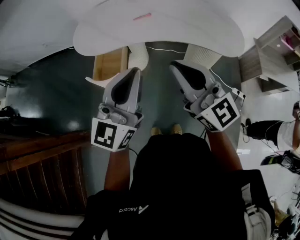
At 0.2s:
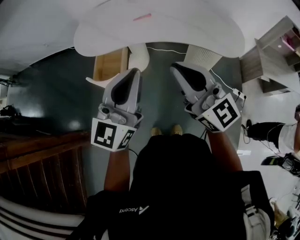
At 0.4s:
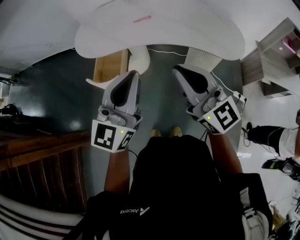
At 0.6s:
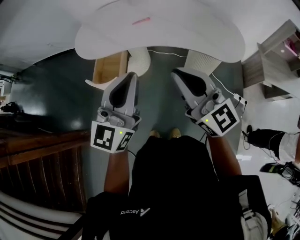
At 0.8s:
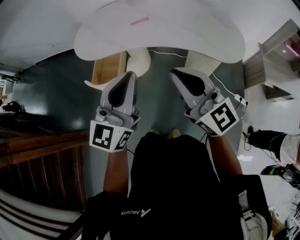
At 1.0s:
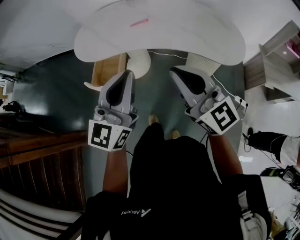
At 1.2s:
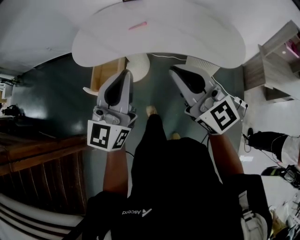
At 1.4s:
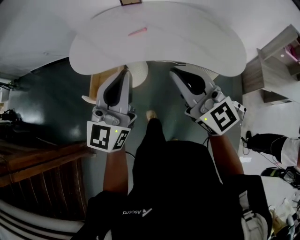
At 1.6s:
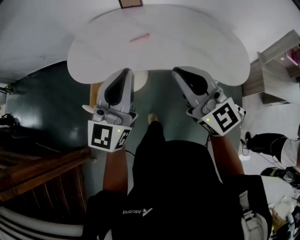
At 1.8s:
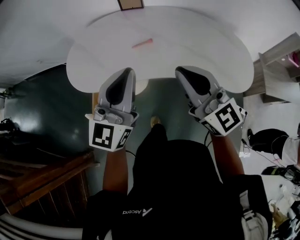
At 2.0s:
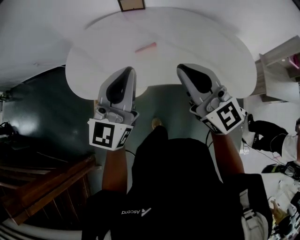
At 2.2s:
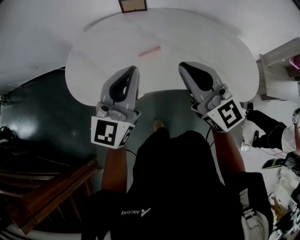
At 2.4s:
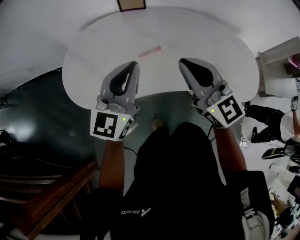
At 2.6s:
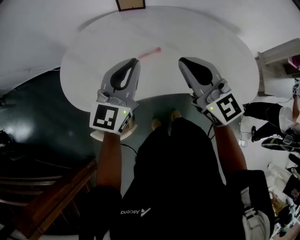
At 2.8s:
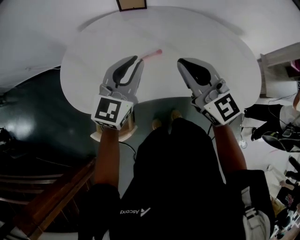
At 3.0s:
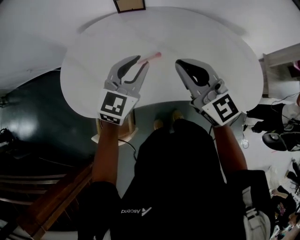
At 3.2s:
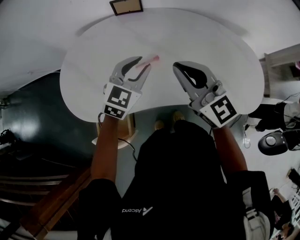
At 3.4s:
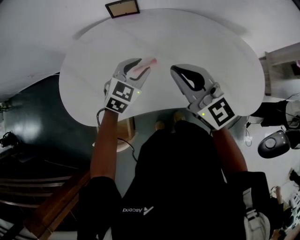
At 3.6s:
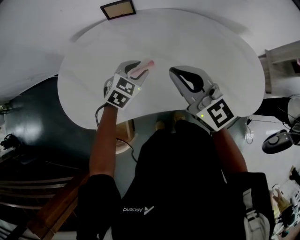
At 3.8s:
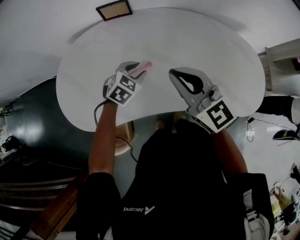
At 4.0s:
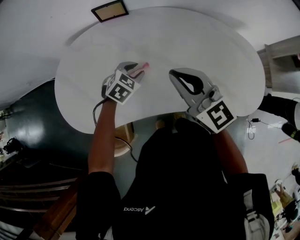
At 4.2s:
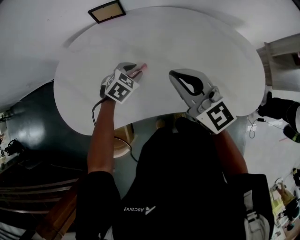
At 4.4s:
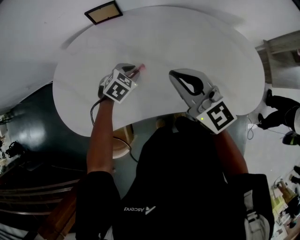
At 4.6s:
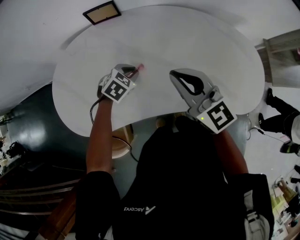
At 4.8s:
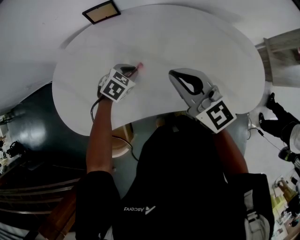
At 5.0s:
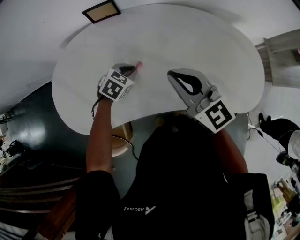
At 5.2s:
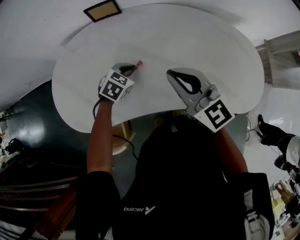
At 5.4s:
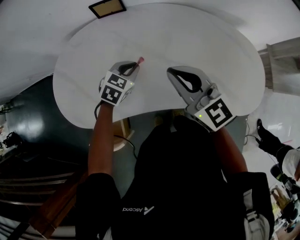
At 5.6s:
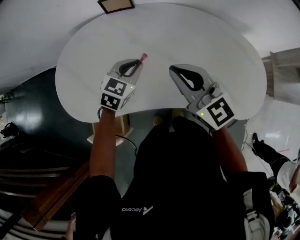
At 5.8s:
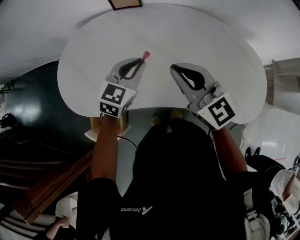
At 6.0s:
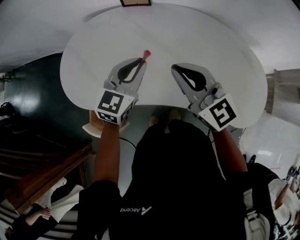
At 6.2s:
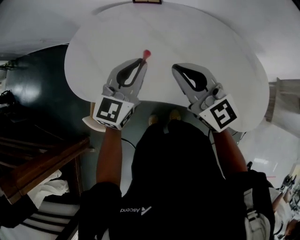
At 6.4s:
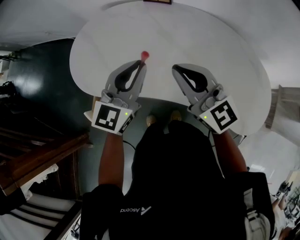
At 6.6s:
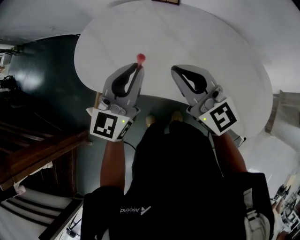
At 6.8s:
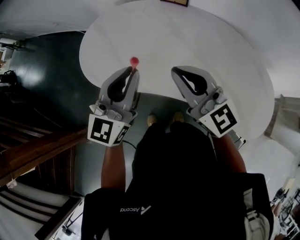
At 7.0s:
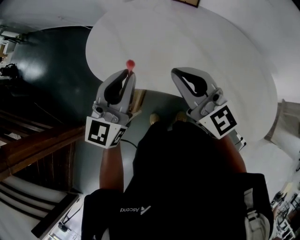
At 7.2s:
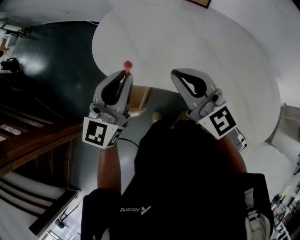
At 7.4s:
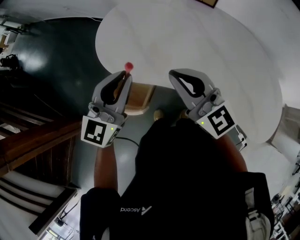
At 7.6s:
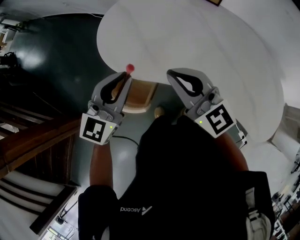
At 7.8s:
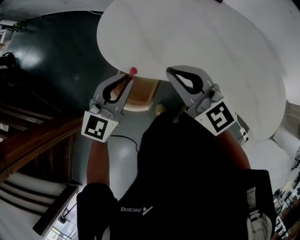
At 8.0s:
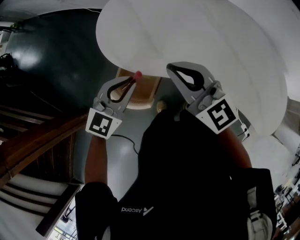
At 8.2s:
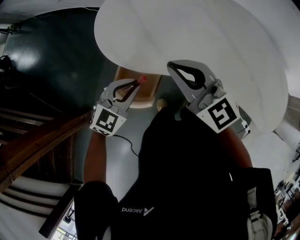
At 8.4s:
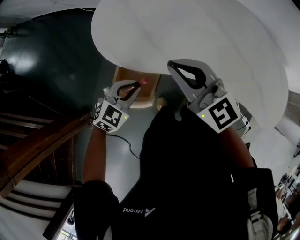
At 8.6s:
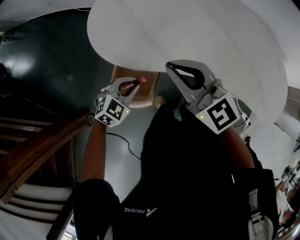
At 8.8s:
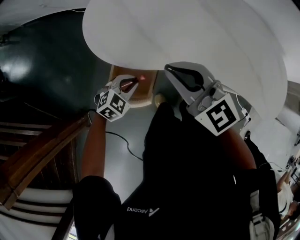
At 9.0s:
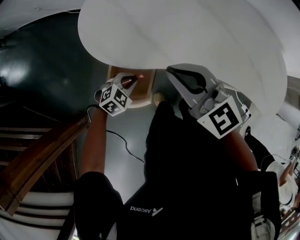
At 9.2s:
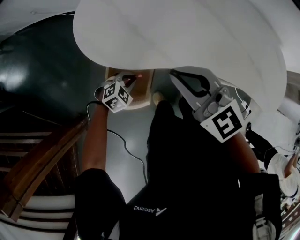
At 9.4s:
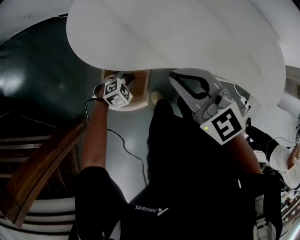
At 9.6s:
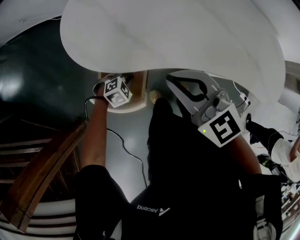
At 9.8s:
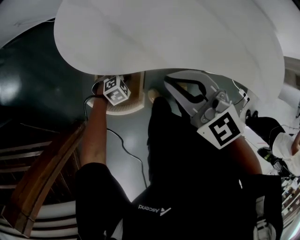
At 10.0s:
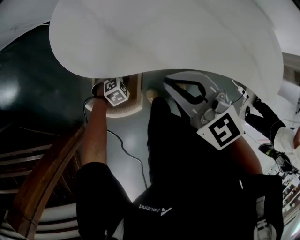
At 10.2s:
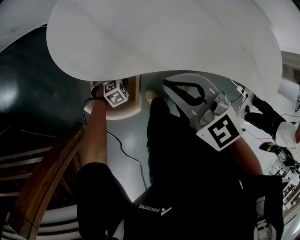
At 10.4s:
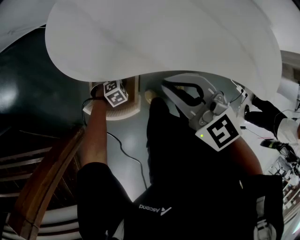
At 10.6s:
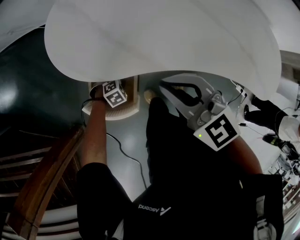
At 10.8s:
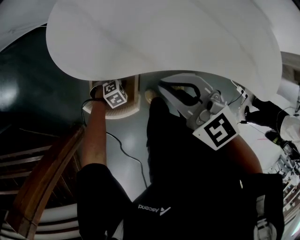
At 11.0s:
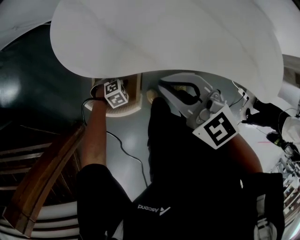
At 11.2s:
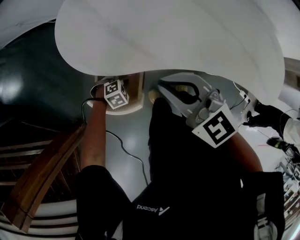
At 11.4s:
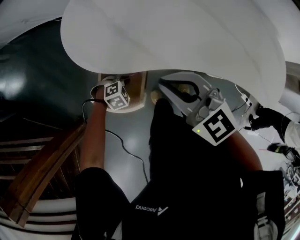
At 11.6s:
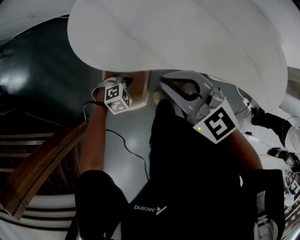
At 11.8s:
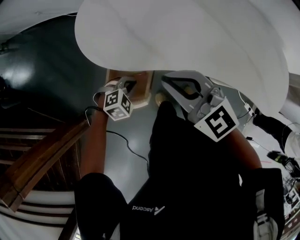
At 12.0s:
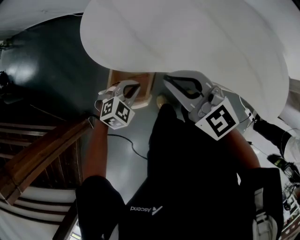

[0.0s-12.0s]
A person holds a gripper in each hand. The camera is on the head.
0.0s to 1.6s: Both grippers travel together forward, approximately 15 cm.
1.6s to 3.0s: The right gripper is displaced forward by roughly 25 cm, while the left gripper moves forward and downward, about 30 cm, and turns by approximately 30 degrees.
3.0s to 4.4s: The left gripper goes about 20 cm downward and forward, and tilts its fingers approximately 50 degrees downward, while the right gripper goes roughly 10 cm to the right and forward.
4.4s to 6.0s: The left gripper goes some 15 cm upward, and tilts its fingers roughly 40 degrees upward.
6.0s to 7.6s: The grippers both shift to the left by approximately 30 cm.
7.6s to 9.0s: The right gripper goes roughly 5 cm downward, while the left gripper moves downward, approximately 30 cm, and tilts its fingers about 50 degrees downward.
9.0s to 10.4s: The left gripper moves downward, about 15 cm, and rotates roughly 20 degrees; the right gripper changes place by some 5 cm.
10.4s to 12.0s: The left gripper is displaced upward by some 25 cm, and turns by roughly 20 degrees.

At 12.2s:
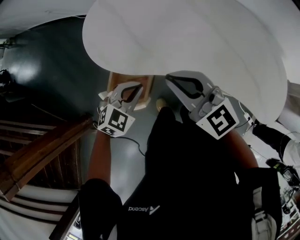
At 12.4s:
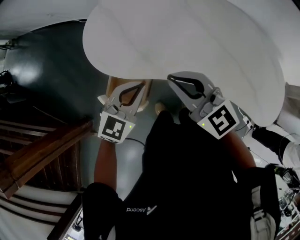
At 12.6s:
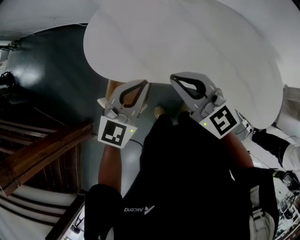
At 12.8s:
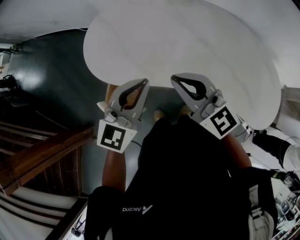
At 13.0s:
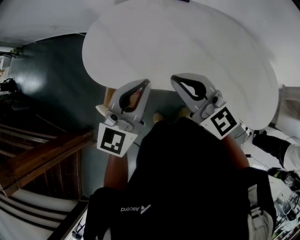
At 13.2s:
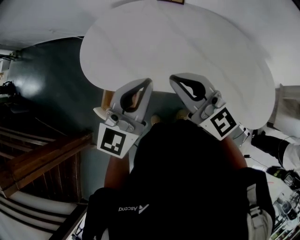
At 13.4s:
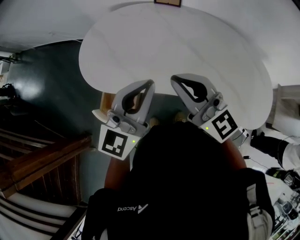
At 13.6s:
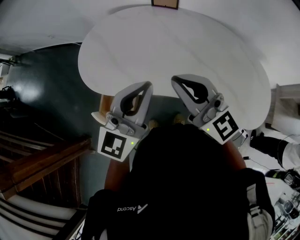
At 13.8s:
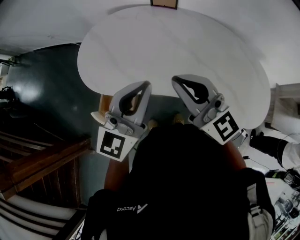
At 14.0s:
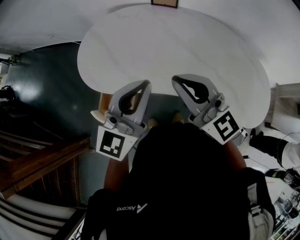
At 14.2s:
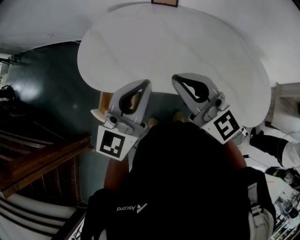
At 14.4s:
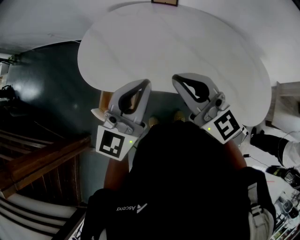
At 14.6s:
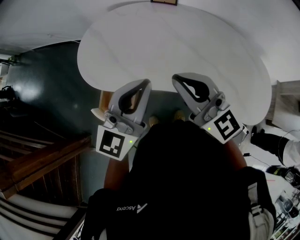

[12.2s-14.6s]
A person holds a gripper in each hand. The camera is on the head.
12.2s to 13.4s: The right gripper shifts about 15 cm to the right and upward, while the left gripper heads upward and to the right, covering roughly 30 cm, and points its fingers approximately 40 degrees further upward.
13.4s to 14.6s: The grippers make only small movements.

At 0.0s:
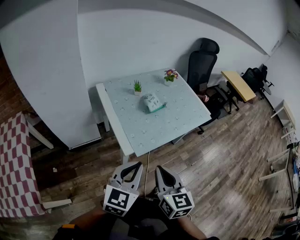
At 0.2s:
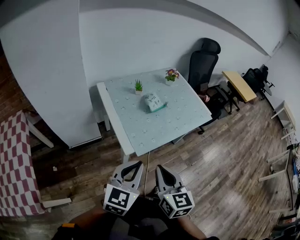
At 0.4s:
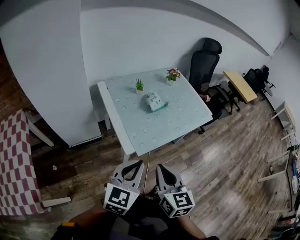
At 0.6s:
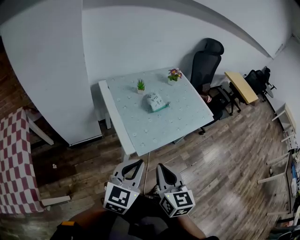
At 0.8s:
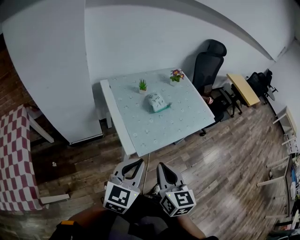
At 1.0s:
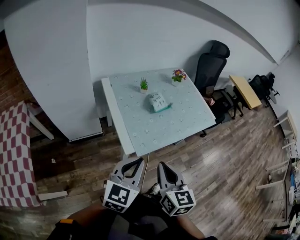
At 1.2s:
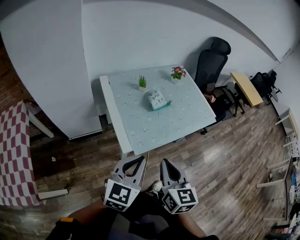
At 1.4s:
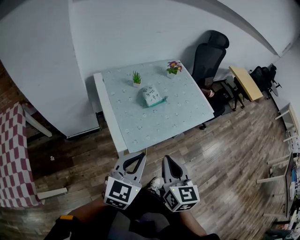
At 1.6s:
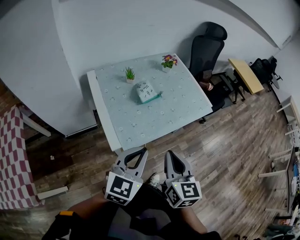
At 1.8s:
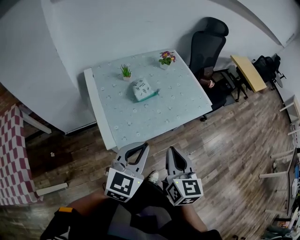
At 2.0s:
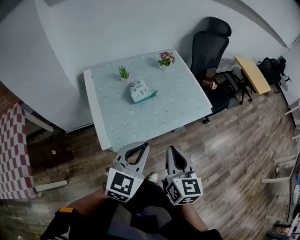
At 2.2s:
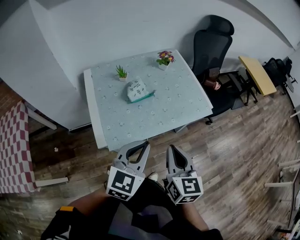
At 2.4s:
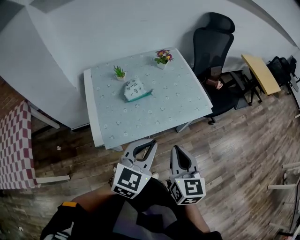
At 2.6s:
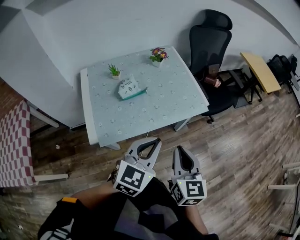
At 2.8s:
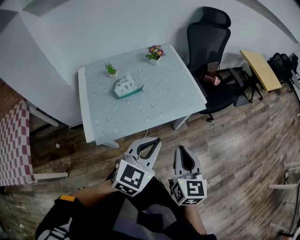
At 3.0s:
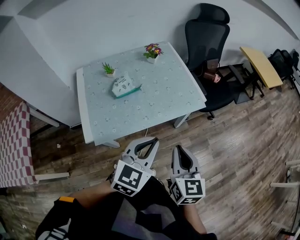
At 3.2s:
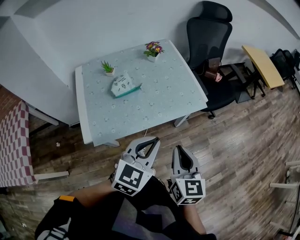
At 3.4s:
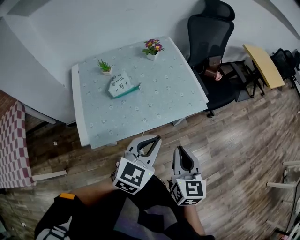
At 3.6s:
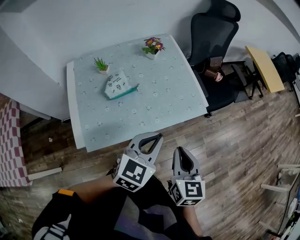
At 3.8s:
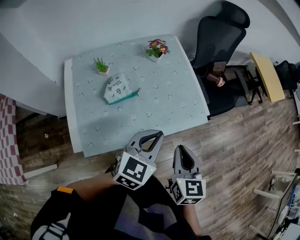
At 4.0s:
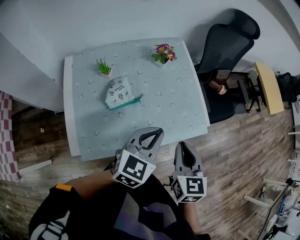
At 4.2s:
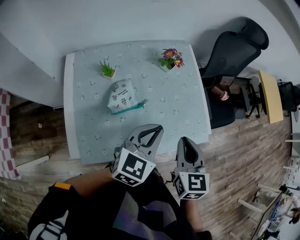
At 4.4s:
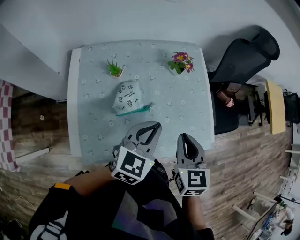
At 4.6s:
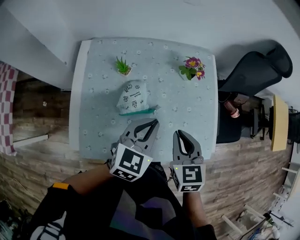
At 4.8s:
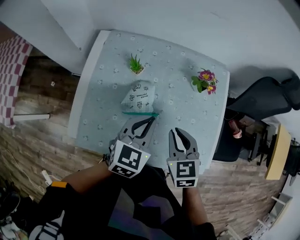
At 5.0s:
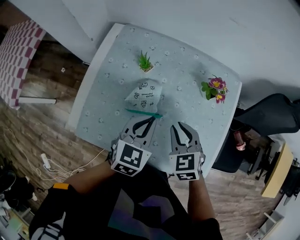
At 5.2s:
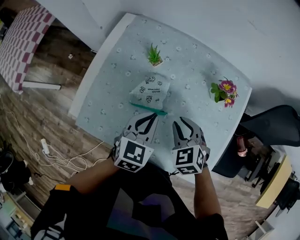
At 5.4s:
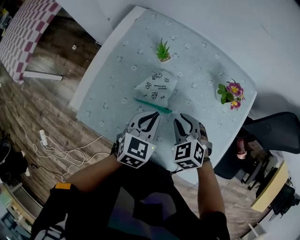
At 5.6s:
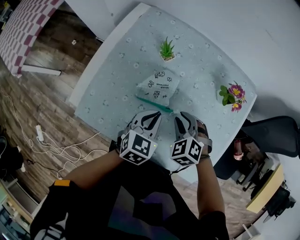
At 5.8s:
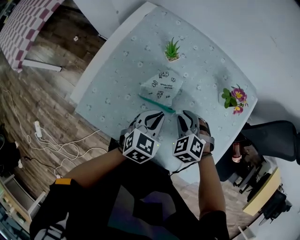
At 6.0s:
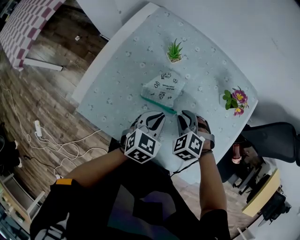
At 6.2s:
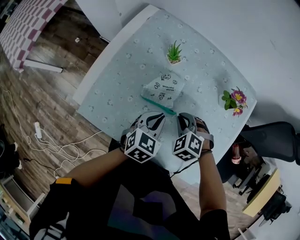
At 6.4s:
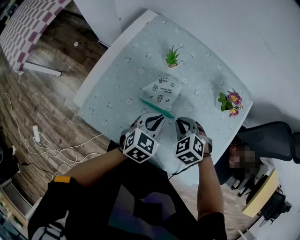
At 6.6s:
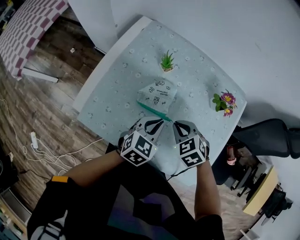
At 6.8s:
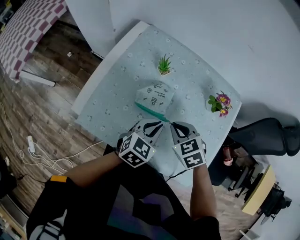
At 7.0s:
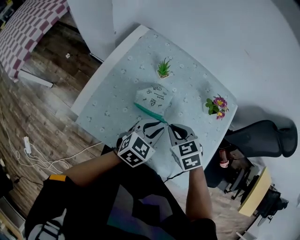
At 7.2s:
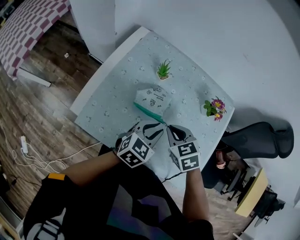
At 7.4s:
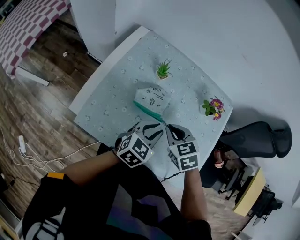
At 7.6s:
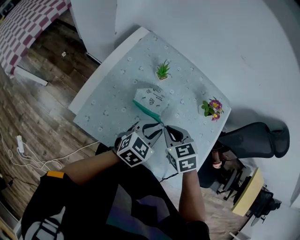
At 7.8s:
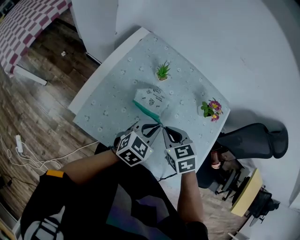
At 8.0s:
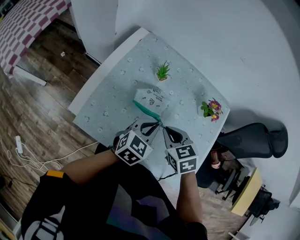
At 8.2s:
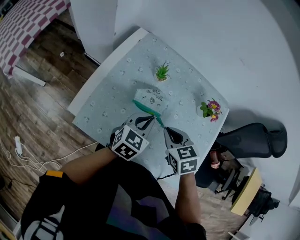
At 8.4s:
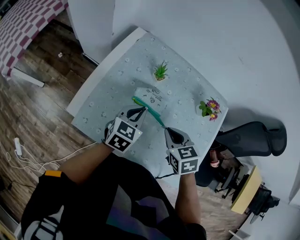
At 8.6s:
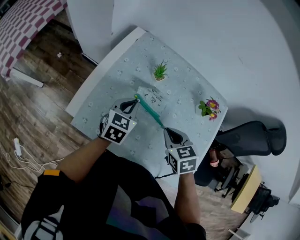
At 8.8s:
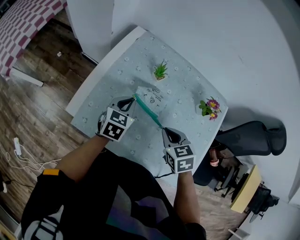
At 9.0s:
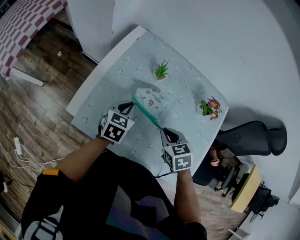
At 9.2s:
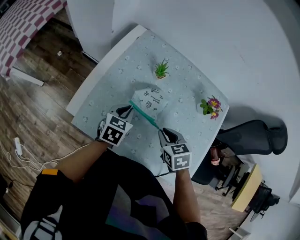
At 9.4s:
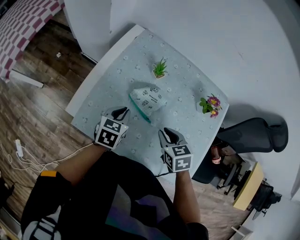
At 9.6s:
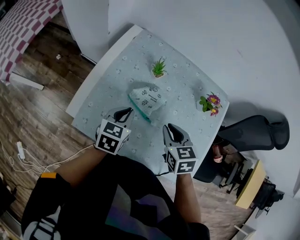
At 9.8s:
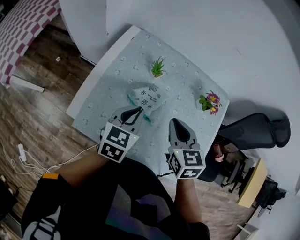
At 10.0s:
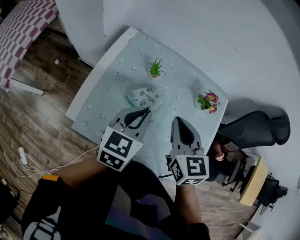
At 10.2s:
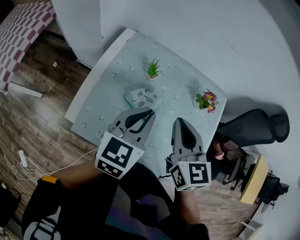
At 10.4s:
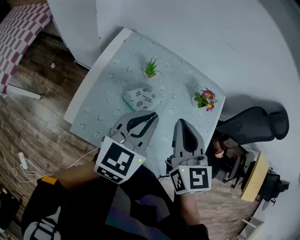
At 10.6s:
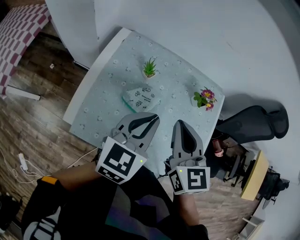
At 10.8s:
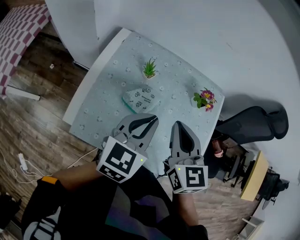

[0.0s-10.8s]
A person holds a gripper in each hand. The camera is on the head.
0.0s to 1.6s: The grippers both shift forward and to the right by some 15 cm.
1.6s to 3.0s: The two grippers go some 25 cm to the right.
3.0s to 4.6s: The two grippers go some 35 cm forward and to the left. The left gripper rotates roughly 20 degrees. The right gripper swivels roughly 40 degrees.
4.6s to 6.2s: Both grippers travel together downward, about 15 cm. The left gripper turns by some 30 degrees, while the right gripper rotates around the line of its fingers by approximately 70 degrees, counterclockwise from behind.
6.2s to 7.8s: The right gripper heads upward, covering some 10 cm, and changes its angle by some 40 degrees; the left gripper heads upward, covering approximately 5 cm.
7.8s to 9.2s: The left gripper travels to the left and downward by some 15 cm, and changes its angle by about 20 degrees.
9.2s to 10.8s: The grippers both shift upward by some 20 cm. The left gripper swivels some 30 degrees; the right gripper points its fingers some 40 degrees further upward.
